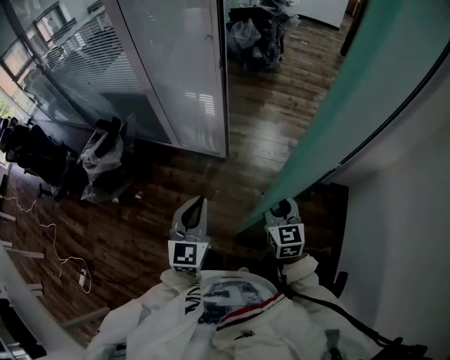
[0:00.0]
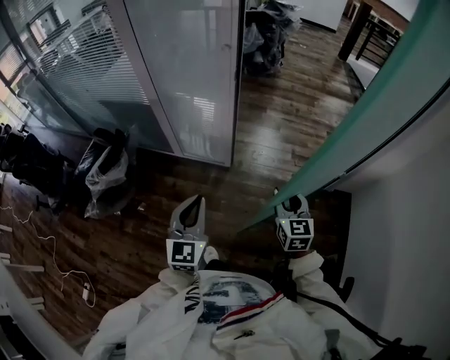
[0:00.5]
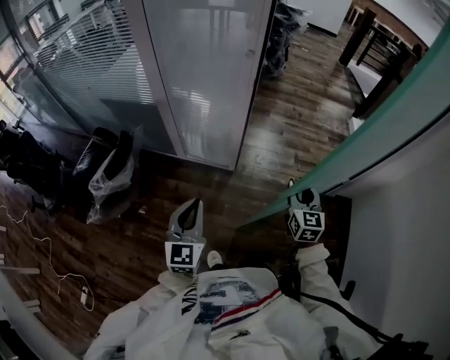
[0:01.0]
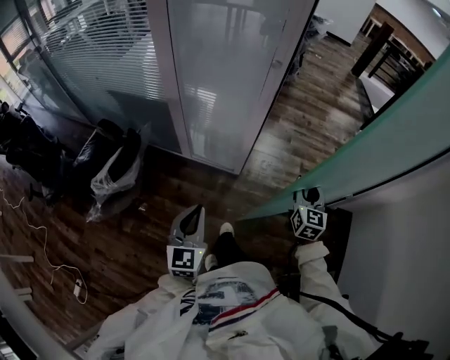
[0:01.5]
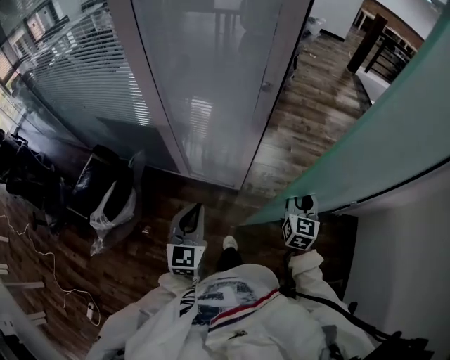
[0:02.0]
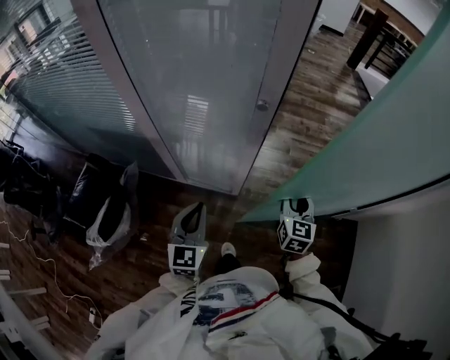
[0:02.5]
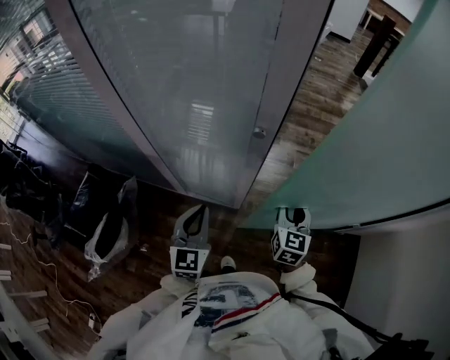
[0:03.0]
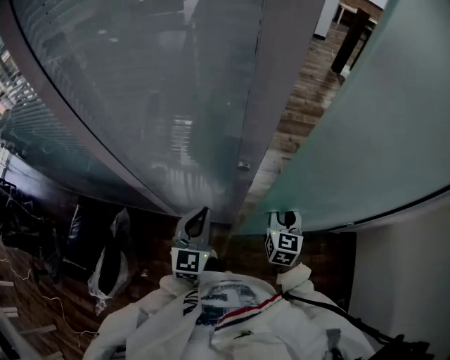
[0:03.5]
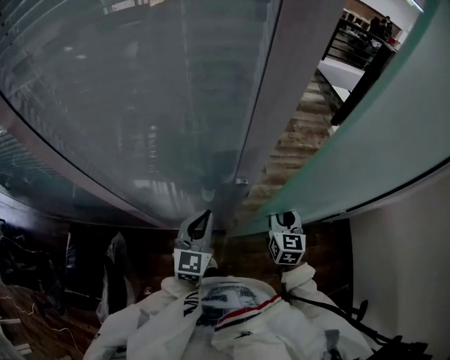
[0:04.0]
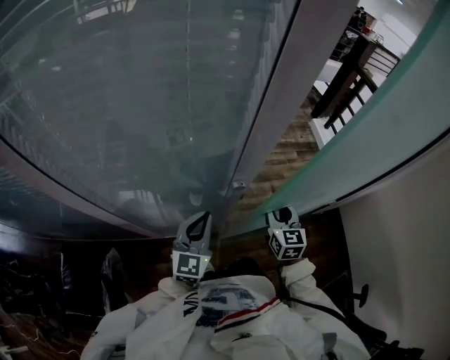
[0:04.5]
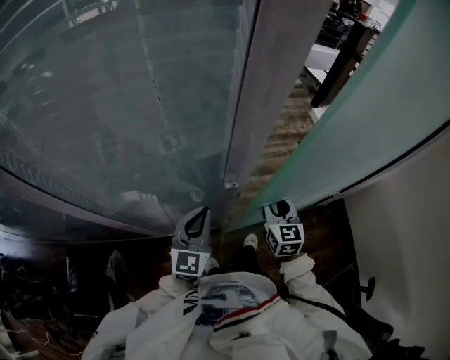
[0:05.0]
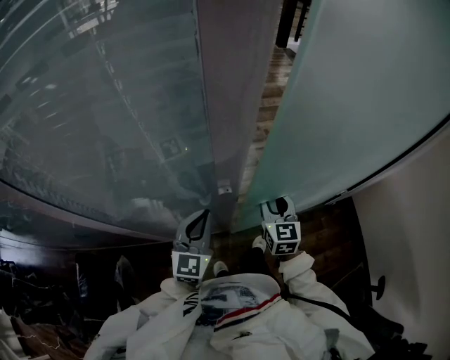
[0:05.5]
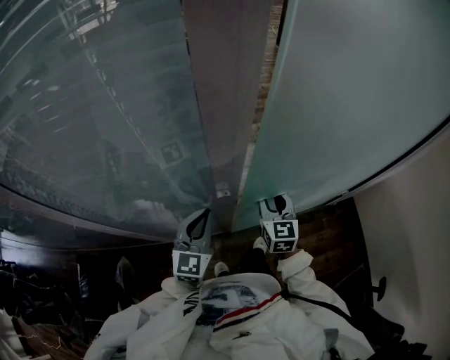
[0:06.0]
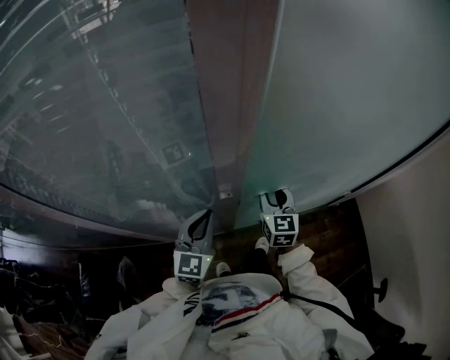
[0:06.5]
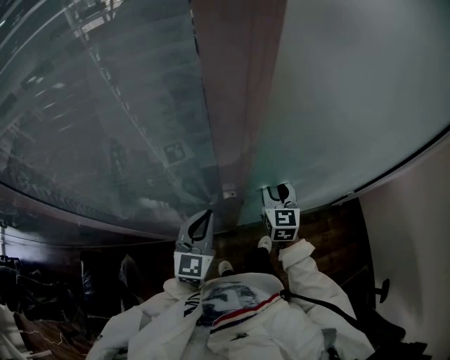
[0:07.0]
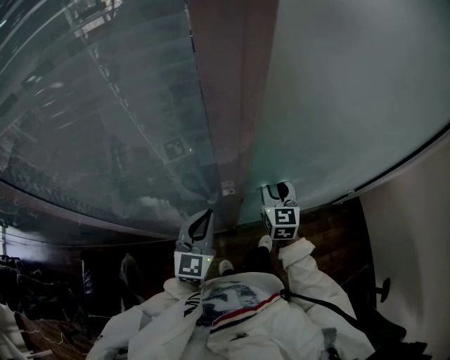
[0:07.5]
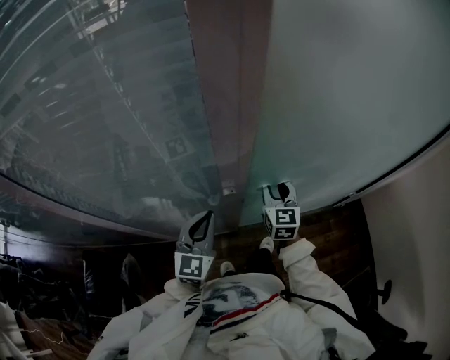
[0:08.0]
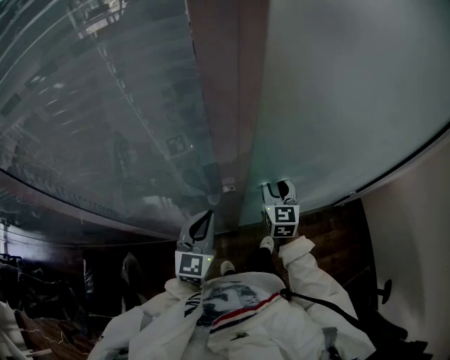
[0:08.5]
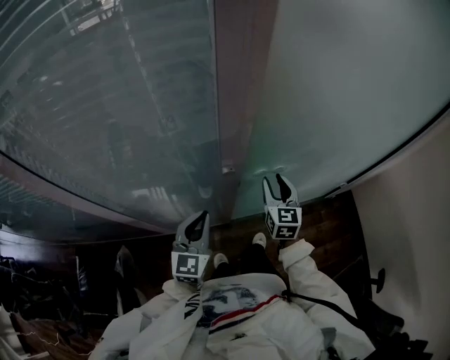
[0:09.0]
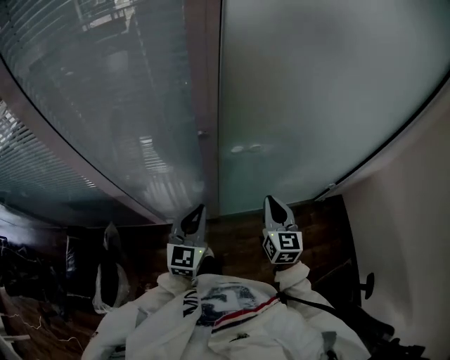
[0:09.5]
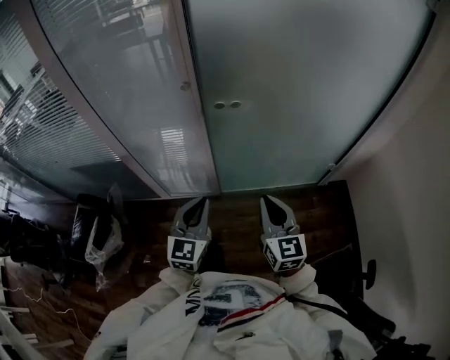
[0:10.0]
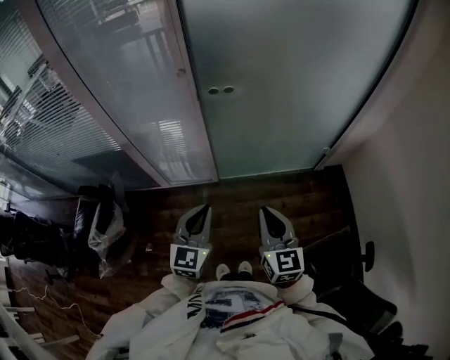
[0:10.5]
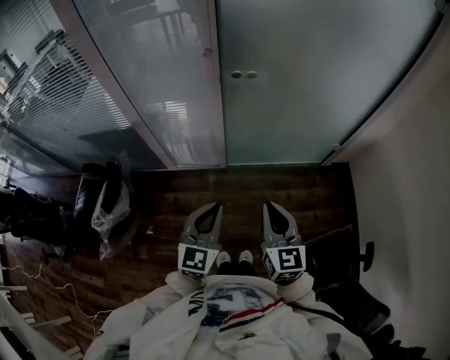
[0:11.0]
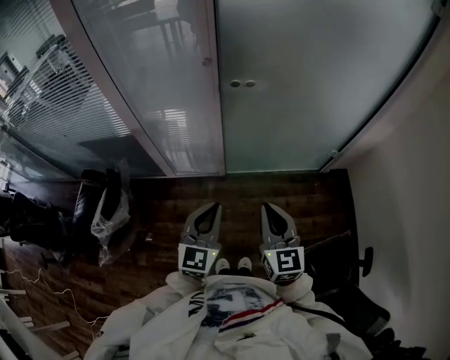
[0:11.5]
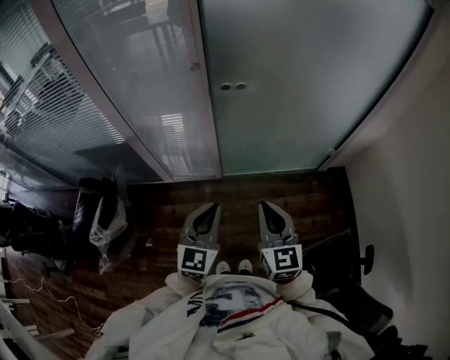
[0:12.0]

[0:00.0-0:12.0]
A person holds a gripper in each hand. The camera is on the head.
0.0 to 2.0 s: The right gripper is displaced forward by some 30 cm, and changes its angle by about 20 degrees, while the left gripper shifts some 35 cm forward and to the left.
2.0 to 4.0 s: The left gripper shifts some 30 cm forward, and turns by some 20 degrees. The right gripper moves forward, approximately 20 cm.
4.0 to 6.0 s: The right gripper ends up some 5 cm from where it was, while the left gripper changes place by about 5 cm.
6.0 to 8.0 s: The grippers stay close to where they were, moving slightly.
8.0 to 10.0 s: Both grippers travel together backward and to the right, about 35 cm. The right gripper closes its fingers.
10.0 to 12.0 s: Both grippers travel together backward, some 10 cm.

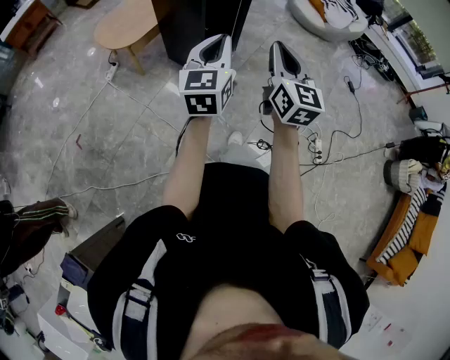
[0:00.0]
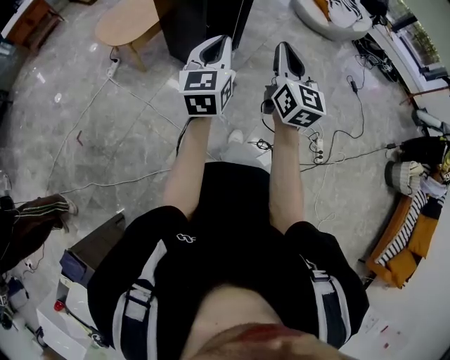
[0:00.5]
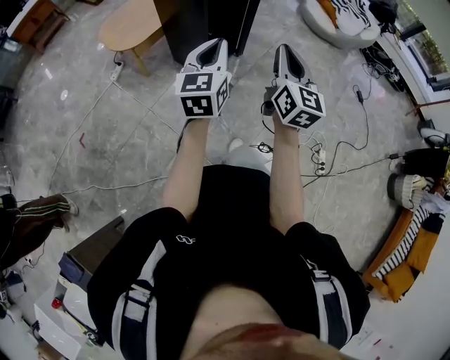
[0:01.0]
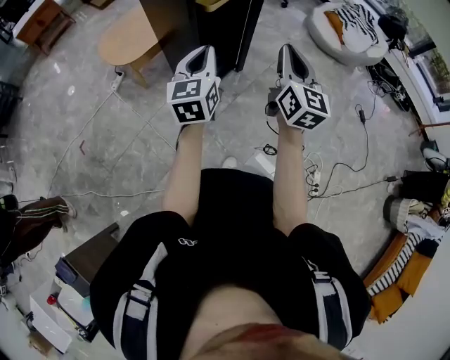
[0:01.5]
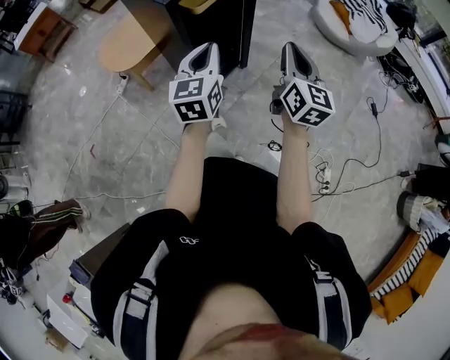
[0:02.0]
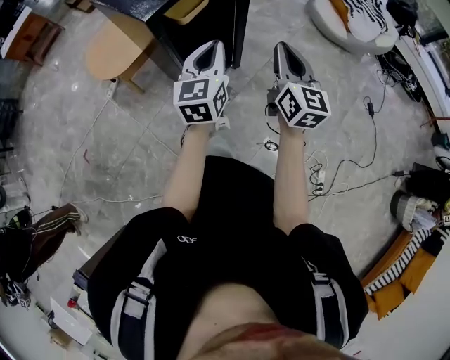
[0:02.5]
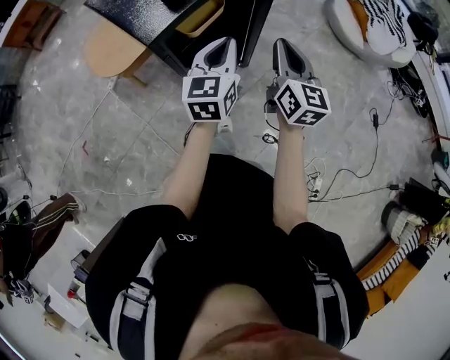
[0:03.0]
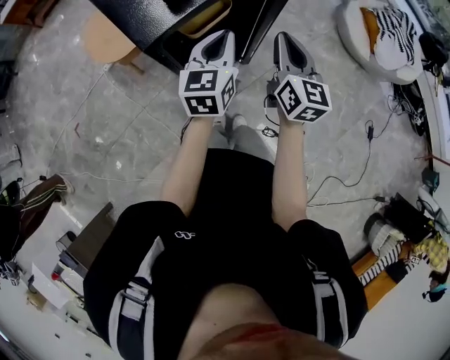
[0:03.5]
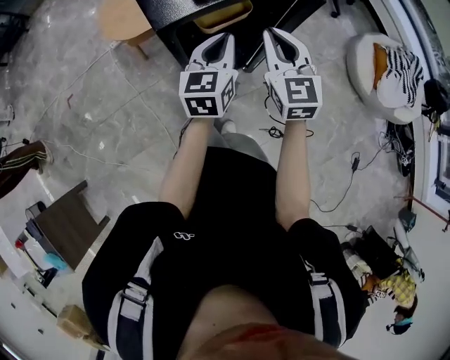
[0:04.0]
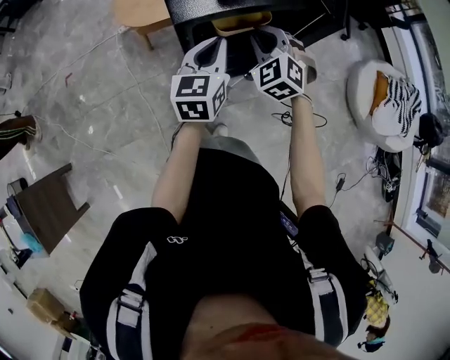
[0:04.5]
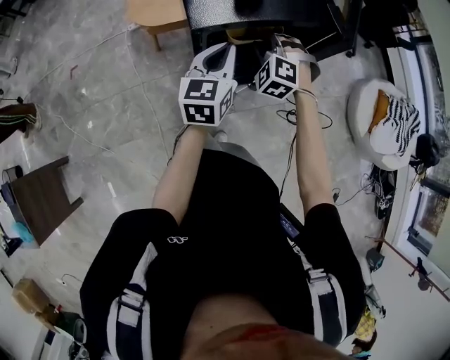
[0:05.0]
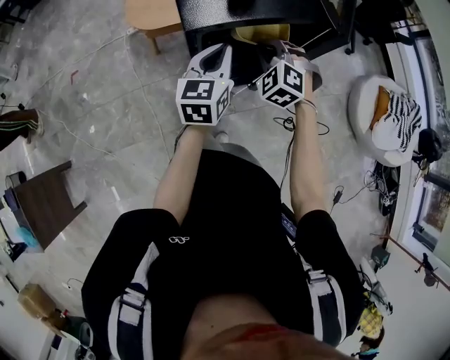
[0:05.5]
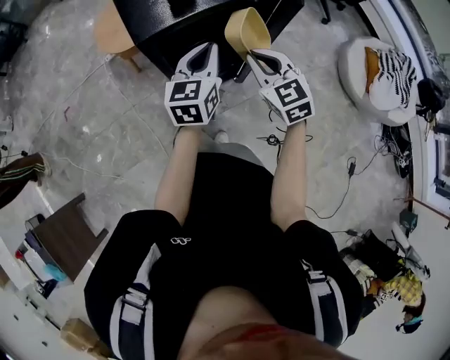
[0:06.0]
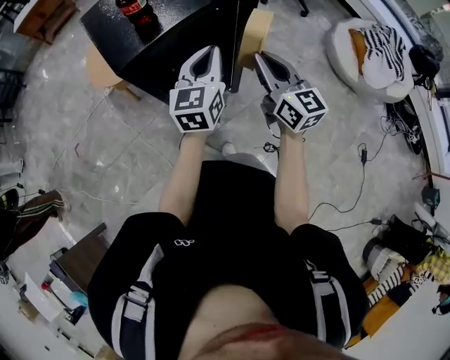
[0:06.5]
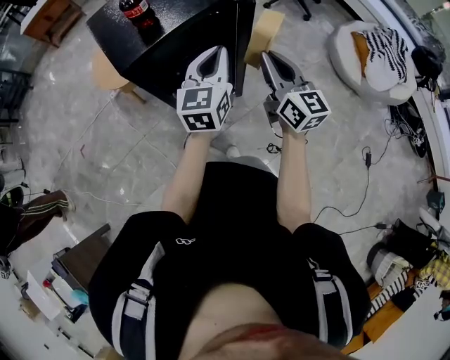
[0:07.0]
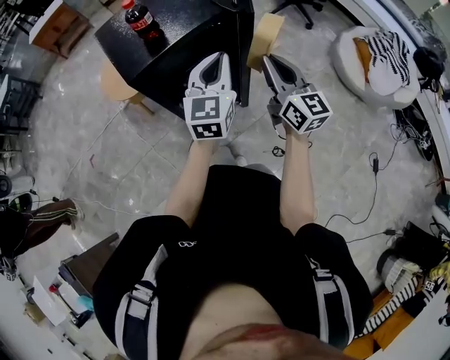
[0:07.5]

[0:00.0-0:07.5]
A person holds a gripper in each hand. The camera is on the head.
0.0 to 2.0 s: The right gripper travels forward and to the right by approximately 30 cm, while the left gripper moves forward, about 25 cm.
2.0 to 4.0 s: The left gripper moves some 25 cm. The right gripper moves approximately 30 cm, and changes its angle by roughly 50 degrees.
4.0 to 5.5 s: The right gripper heads downward, to the left and forward, covering about 15 cm, and rolls counterclockwise, seen from behind, by some 50 degrees; the left gripper goes approximately 5 cm to the left.
5.5 to 7.5 s: The right gripper travels to the right, upward and backward by some 25 cm, and twists roughly 70 degrees clockwise, seen from behind. Meanwhile the left gripper shifts some 20 cm to the right and upward, and swivels about 20 degrees.

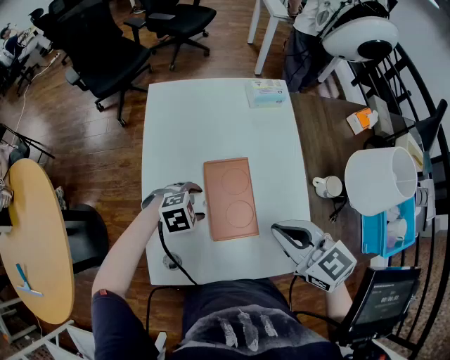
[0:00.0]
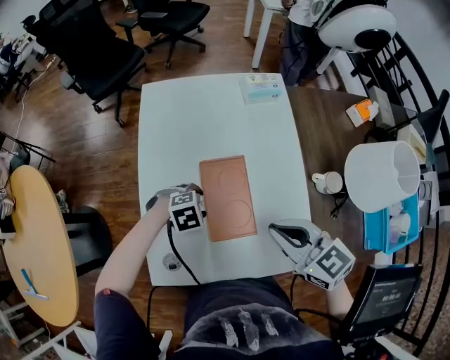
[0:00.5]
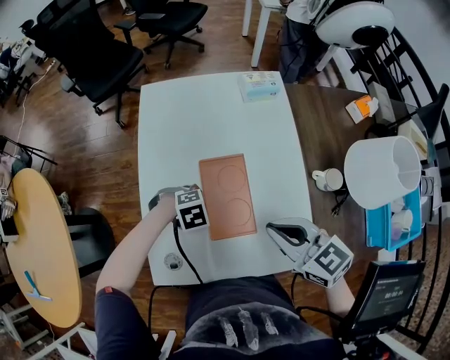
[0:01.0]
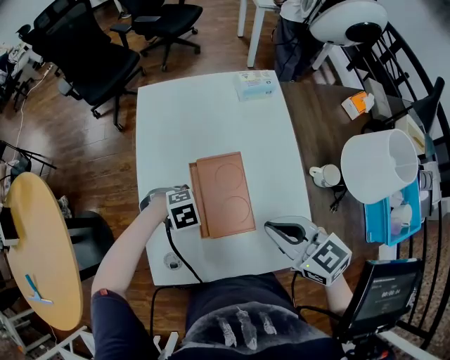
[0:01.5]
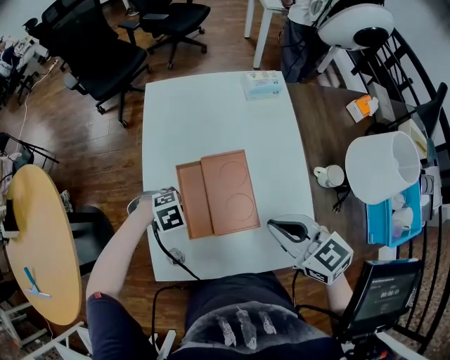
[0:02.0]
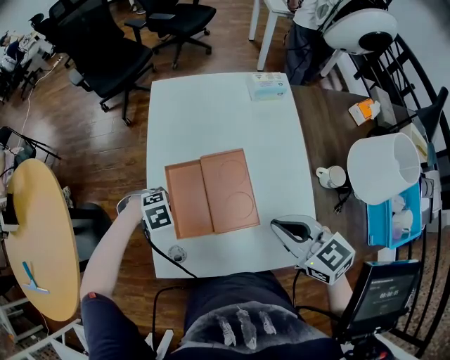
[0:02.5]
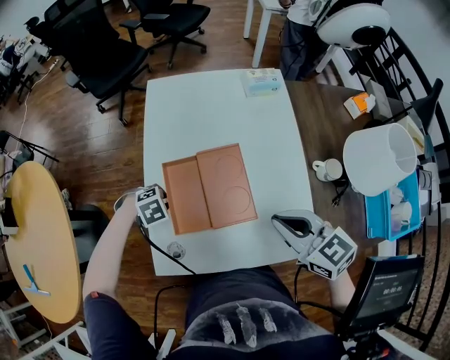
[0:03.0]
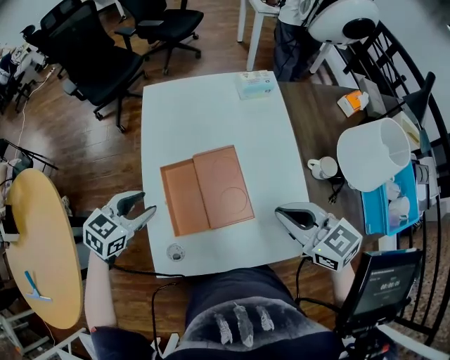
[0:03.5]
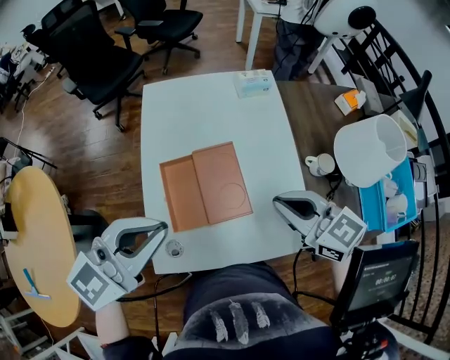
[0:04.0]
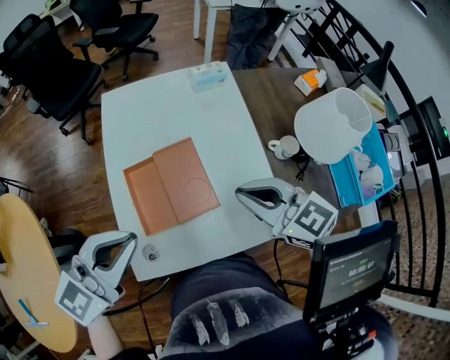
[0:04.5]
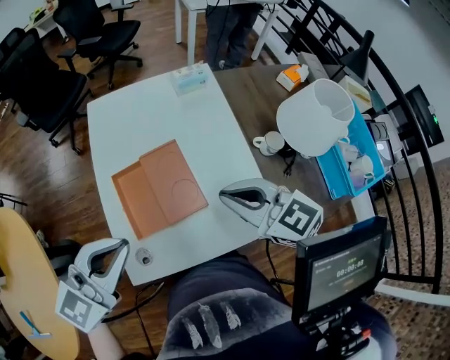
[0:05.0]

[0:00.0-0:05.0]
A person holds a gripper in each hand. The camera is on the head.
0.0 to 2.5 s: The left gripper changes place by approximately 15 cm, changes its angle by roughly 20 degrees, and closes up.
2.5 to 5.0 s: The left gripper goes about 30 cm upward, tips its fingers upward by approximately 70 degrees, and opens and closes again. Meanwhile the right gripper shifts about 5 cm upward.

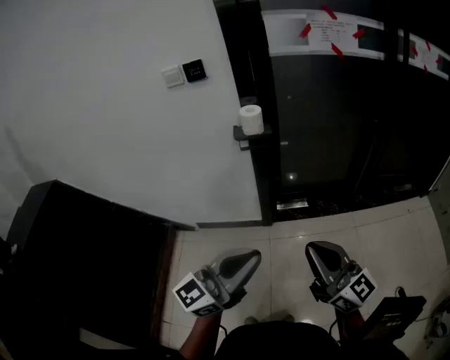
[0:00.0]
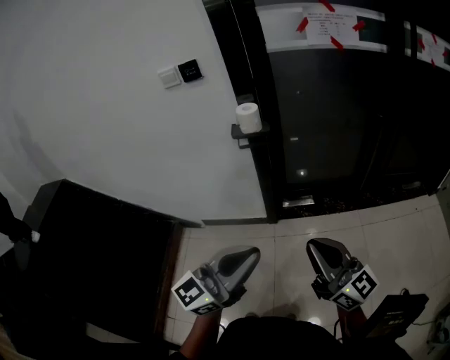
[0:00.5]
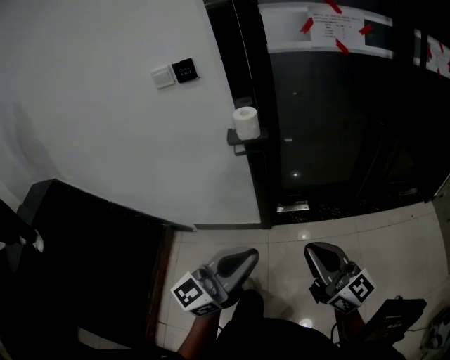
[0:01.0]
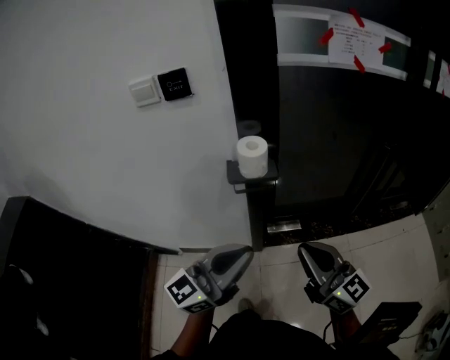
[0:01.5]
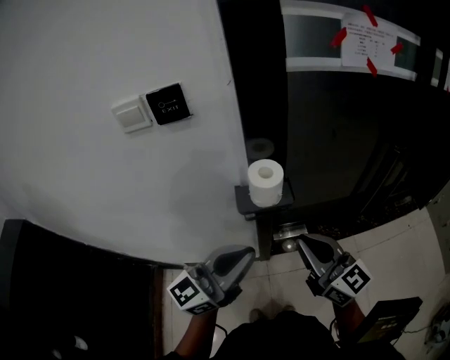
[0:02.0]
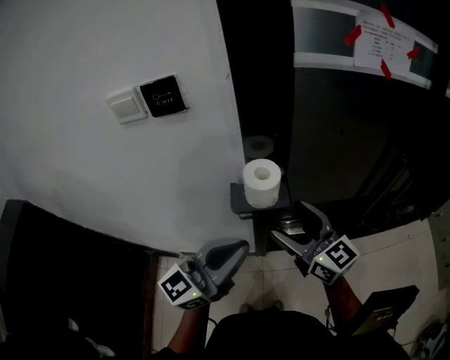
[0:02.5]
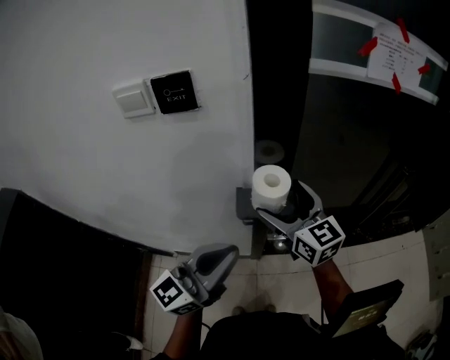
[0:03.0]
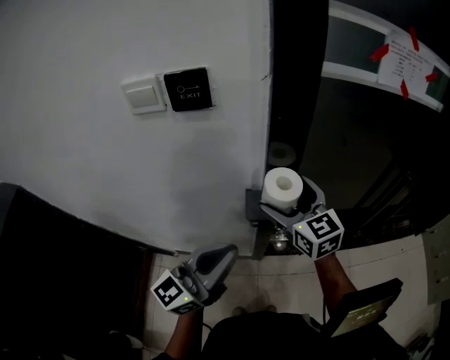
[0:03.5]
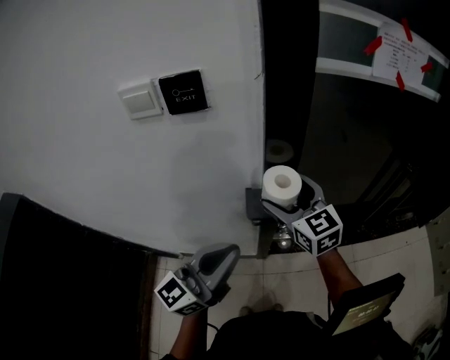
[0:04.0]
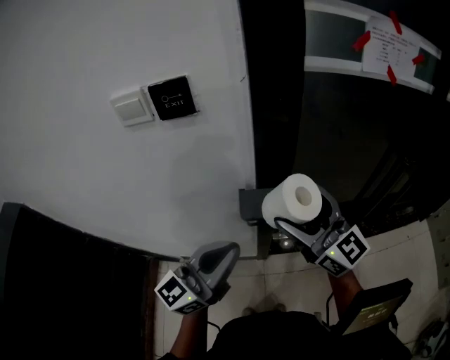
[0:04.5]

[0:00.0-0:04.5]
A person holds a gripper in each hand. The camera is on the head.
0.0 to 2.0 s: Both grippers move forward, approximately 40 cm.
2.0 to 4.5 s: The left gripper shifts by some 5 cm, while the right gripper goes roughly 10 cm forward and upward, and opens its fingers.
